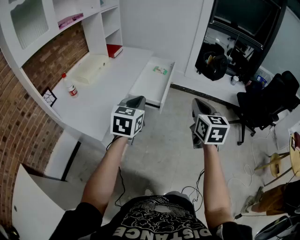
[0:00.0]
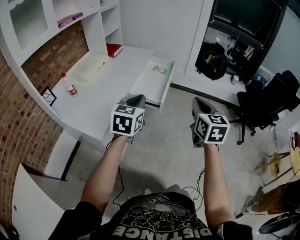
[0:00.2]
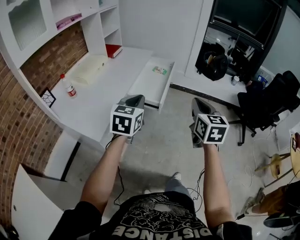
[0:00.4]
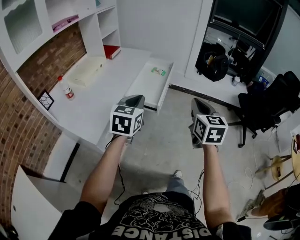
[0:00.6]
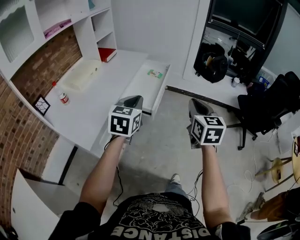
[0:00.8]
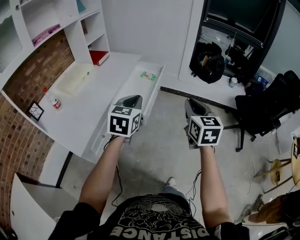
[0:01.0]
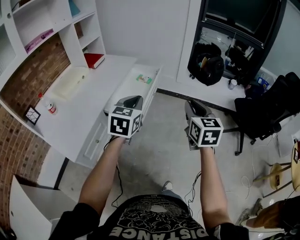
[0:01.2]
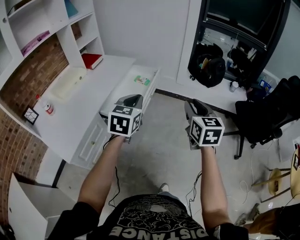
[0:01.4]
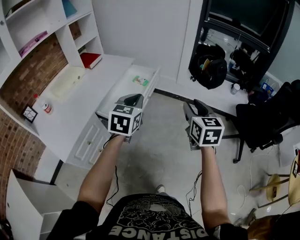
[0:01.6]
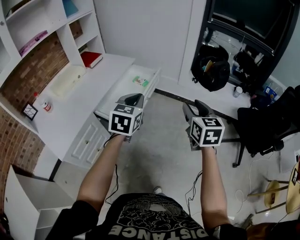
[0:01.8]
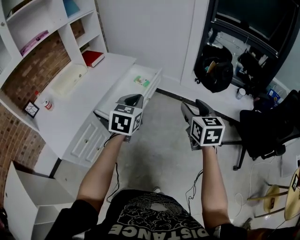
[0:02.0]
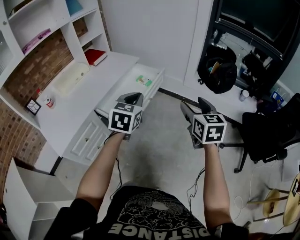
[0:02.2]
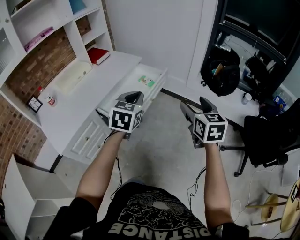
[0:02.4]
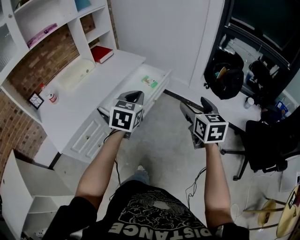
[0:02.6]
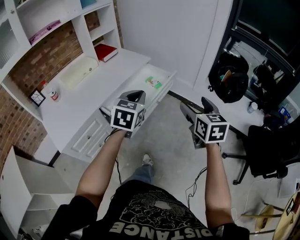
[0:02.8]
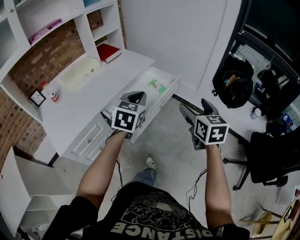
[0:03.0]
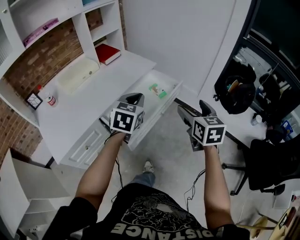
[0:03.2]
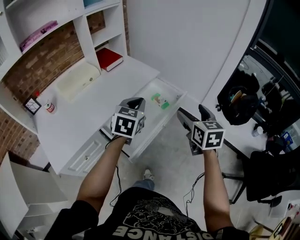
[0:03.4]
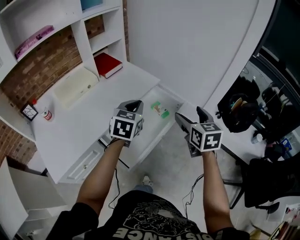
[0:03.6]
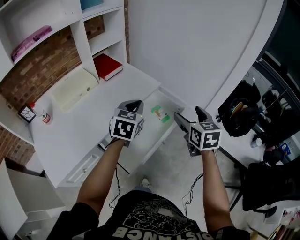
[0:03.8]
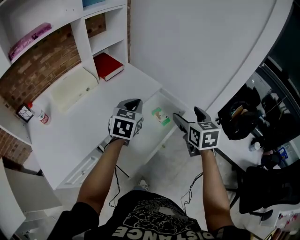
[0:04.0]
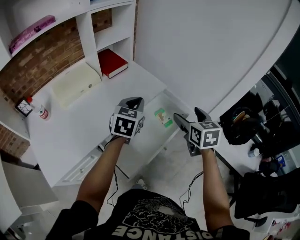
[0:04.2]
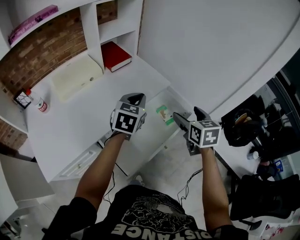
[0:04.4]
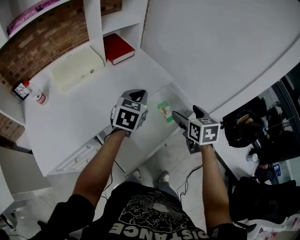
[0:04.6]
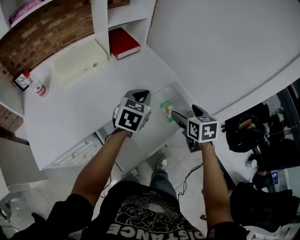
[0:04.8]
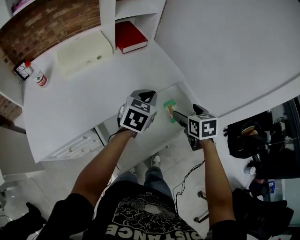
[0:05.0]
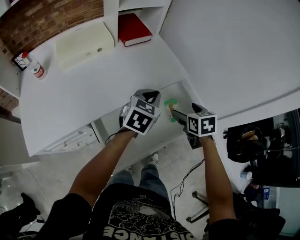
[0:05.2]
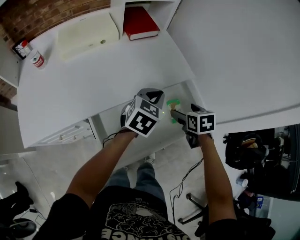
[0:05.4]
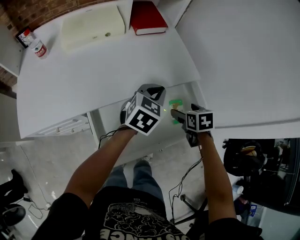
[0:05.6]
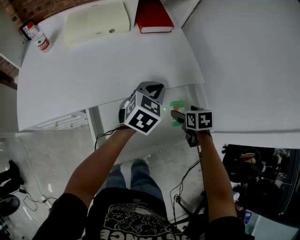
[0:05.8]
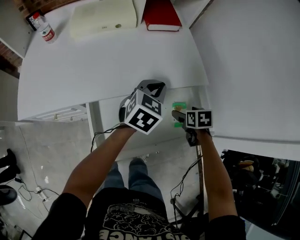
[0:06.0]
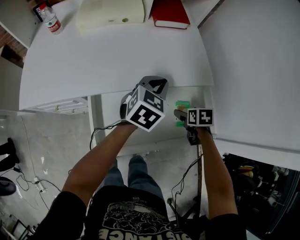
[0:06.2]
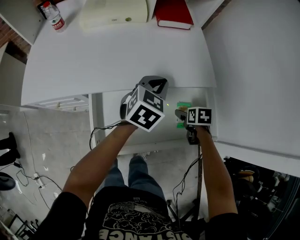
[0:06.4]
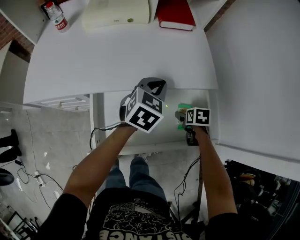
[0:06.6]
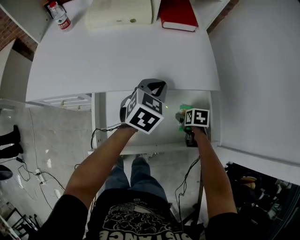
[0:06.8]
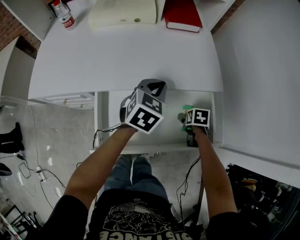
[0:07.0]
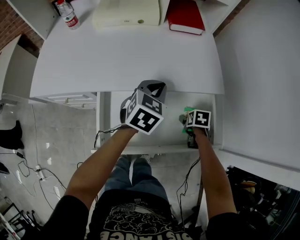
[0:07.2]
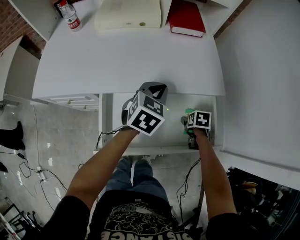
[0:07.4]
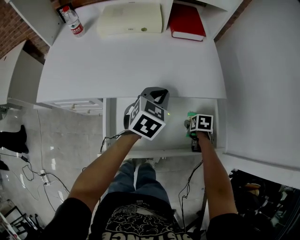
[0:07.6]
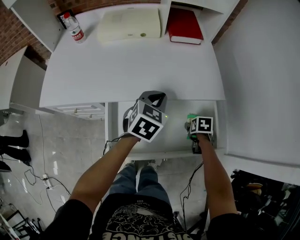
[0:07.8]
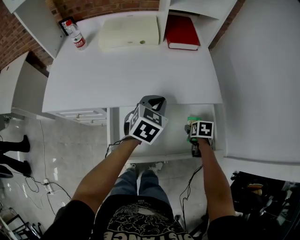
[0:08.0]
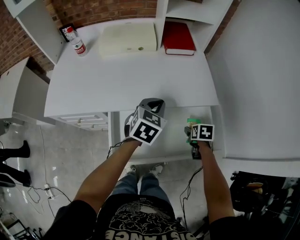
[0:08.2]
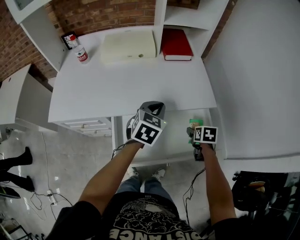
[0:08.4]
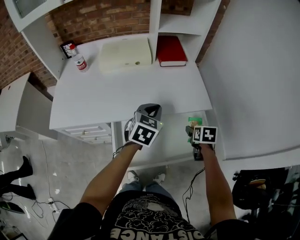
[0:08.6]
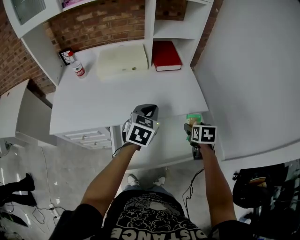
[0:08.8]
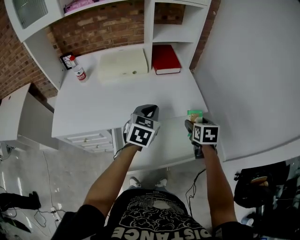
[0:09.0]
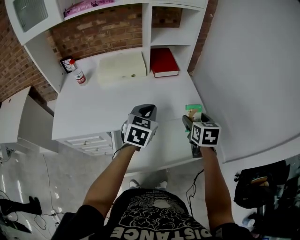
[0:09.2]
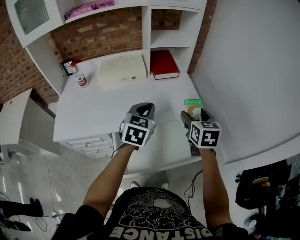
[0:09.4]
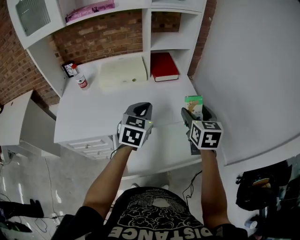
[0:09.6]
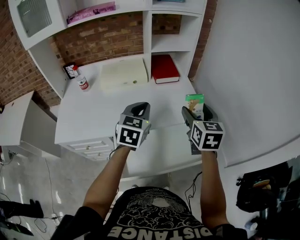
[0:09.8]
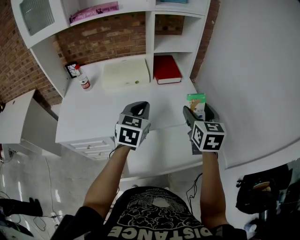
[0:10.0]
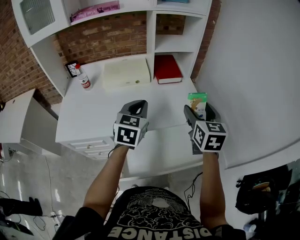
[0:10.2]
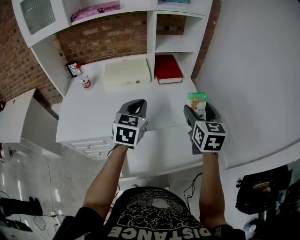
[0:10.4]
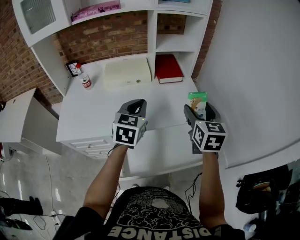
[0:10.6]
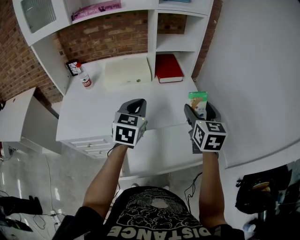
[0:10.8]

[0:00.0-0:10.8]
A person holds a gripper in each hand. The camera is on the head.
0:00.0 to 0:01.6: Both grippers travel together forward and to the right, roughly 30 cm.
0:01.6 to 0:03.0: Both grippers travel together forward, about 15 cm. The right gripper opens.
0:03.0 to 0:04.6: Both grippers move forward, some 30 cm. The right gripper turns by about 20 degrees.
0:04.6 to 0:06.2: The left gripper moves downward, about 10 cm, and swivels approximately 20 degrees. Meanwhile the right gripper shifts some 25 cm downward, and angles its fingers downward, by approximately 30 degrees.
0:06.2 to 0:07.8: The left gripper moves roughly 5 cm.
0:07.8 to 0:09.2: The left gripper moves upward, about 15 cm. The right gripper heads upward, covering roughly 30 cm, and tilts its fingers approximately 40 degrees upward.
0:09.2 to 0:10.8: The left gripper travels to the left and upward by roughly 10 cm; the right gripper moves upward, roughly 10 cm.

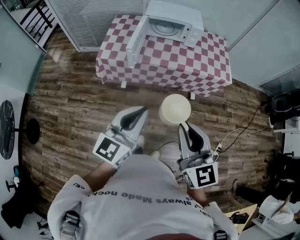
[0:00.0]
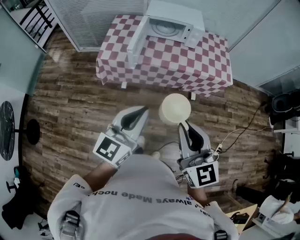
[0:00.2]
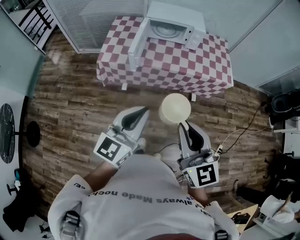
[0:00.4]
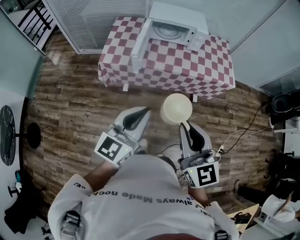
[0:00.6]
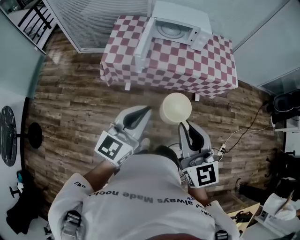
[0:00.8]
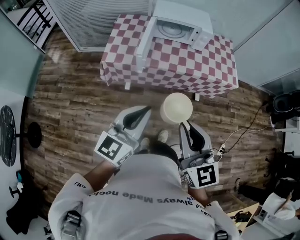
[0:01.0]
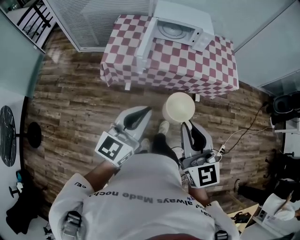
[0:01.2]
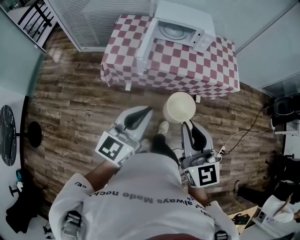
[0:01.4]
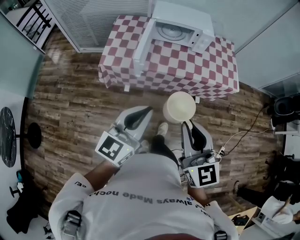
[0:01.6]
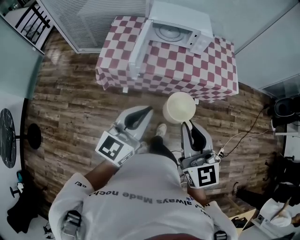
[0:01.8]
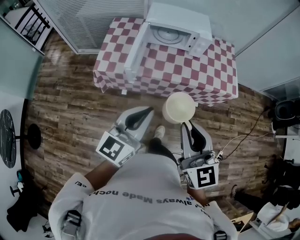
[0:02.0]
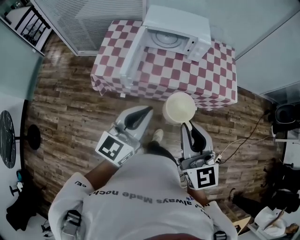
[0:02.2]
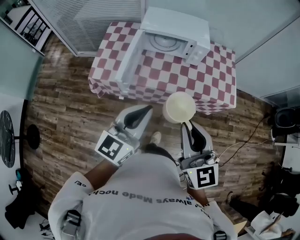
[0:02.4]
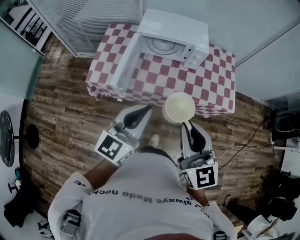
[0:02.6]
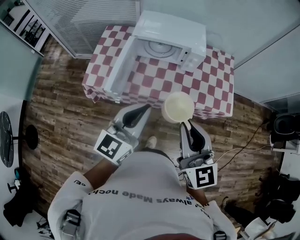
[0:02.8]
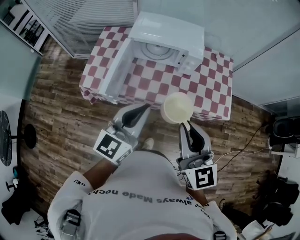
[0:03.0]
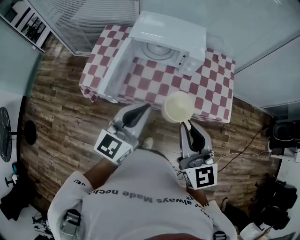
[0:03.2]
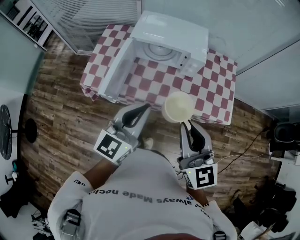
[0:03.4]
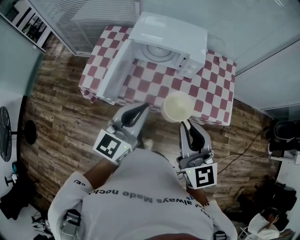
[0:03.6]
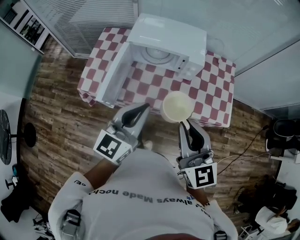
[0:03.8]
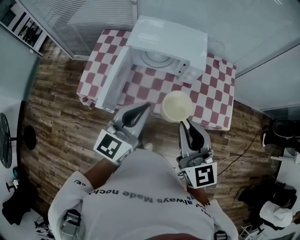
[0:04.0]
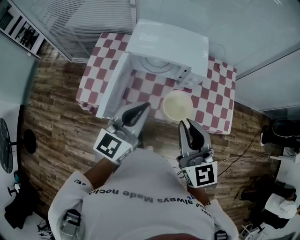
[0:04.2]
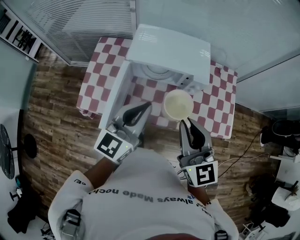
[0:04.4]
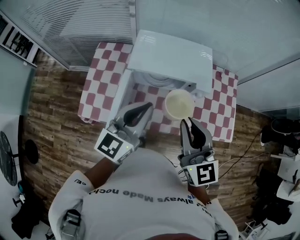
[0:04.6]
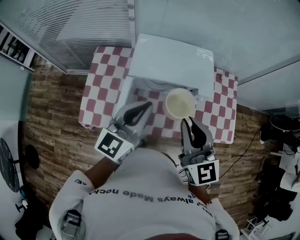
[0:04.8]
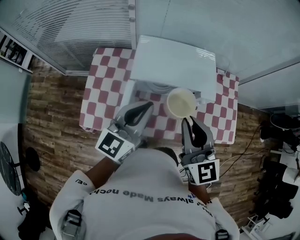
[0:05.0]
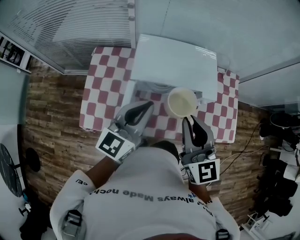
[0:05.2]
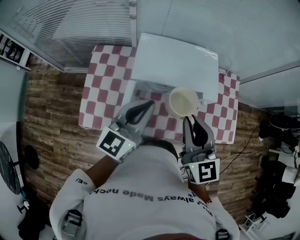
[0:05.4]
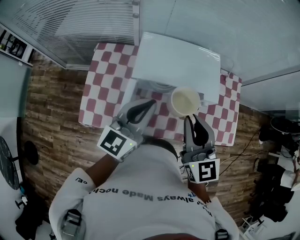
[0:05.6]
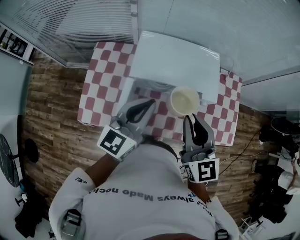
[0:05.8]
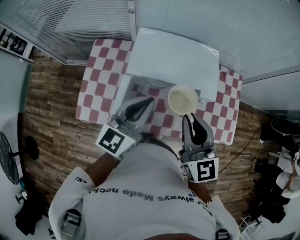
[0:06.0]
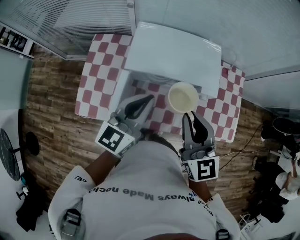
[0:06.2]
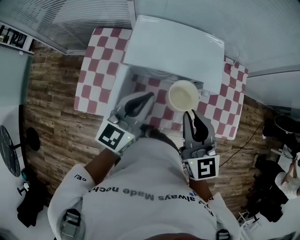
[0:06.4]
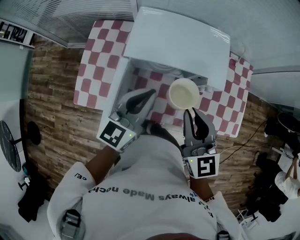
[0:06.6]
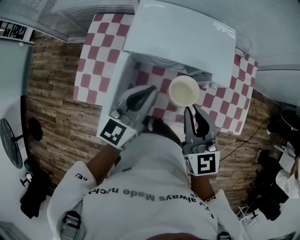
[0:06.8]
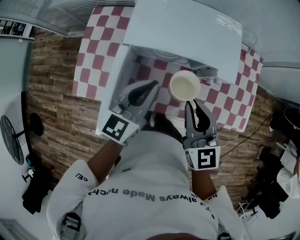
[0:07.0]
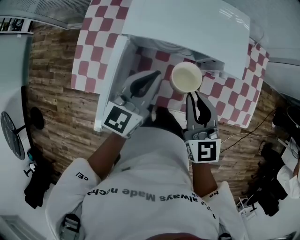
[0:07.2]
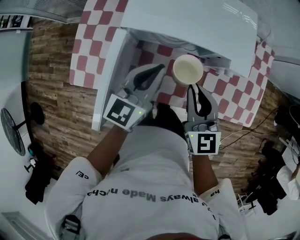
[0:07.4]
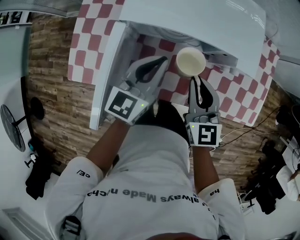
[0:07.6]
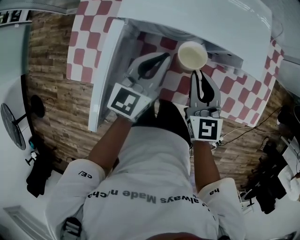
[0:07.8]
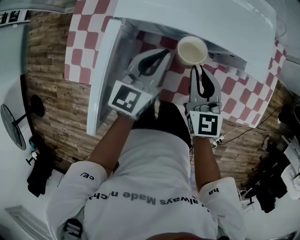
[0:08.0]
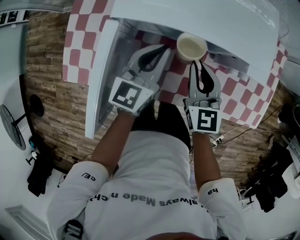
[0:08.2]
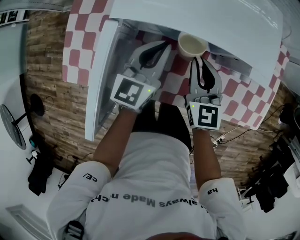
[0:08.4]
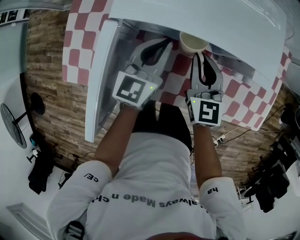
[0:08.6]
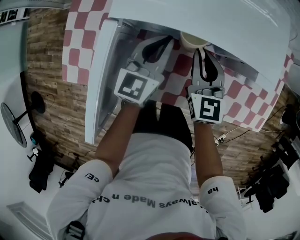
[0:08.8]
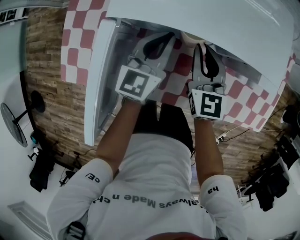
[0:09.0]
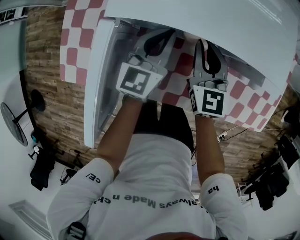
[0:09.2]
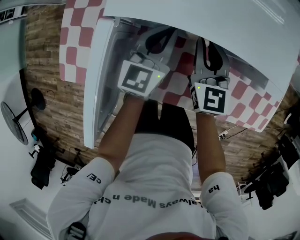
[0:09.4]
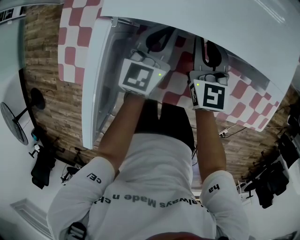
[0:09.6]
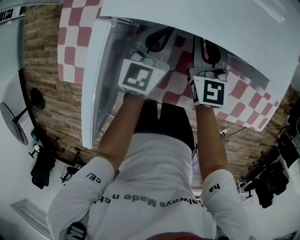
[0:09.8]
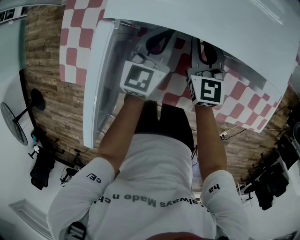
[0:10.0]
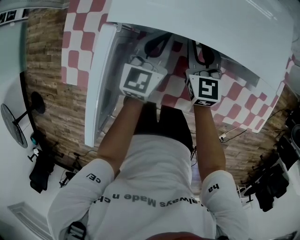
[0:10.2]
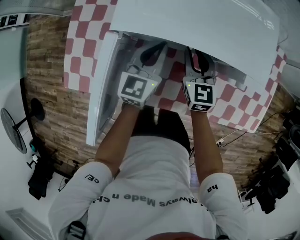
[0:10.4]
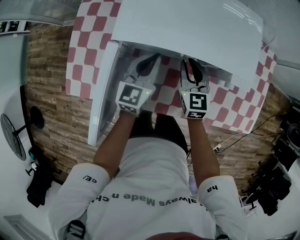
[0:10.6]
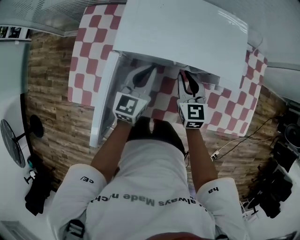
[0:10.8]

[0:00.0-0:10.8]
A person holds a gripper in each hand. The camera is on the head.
0:00.0 to 0:01.6: The grippers both shift forward and to the left by approximately 10 cm.
0:01.6 to 0:03.0: Both grippers travel together forward and to the right, some 25 cm.
0:03.0 to 0:04.6: Both grippers move forward, some 20 cm.
0:04.6 to 0:06.2: Both grippers move forward, about 10 cm.
0:06.2 to 0:07.8: The two grippers go about 20 cm downward.
0:07.8 to 0:09.2: The right gripper heads forward and downward, covering about 10 cm. The left gripper is displaced downward and forward by approximately 10 cm.
0:09.2 to 0:10.8: The right gripper changes place by about 5 cm, while the left gripper moves upward, roughly 5 cm.

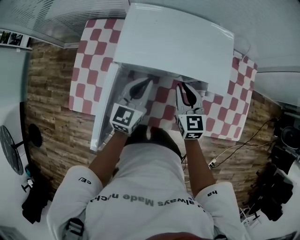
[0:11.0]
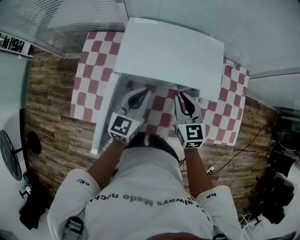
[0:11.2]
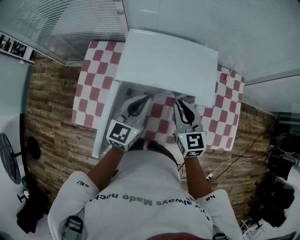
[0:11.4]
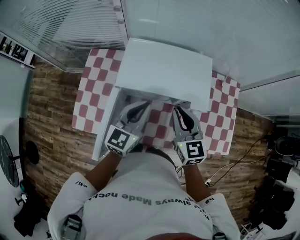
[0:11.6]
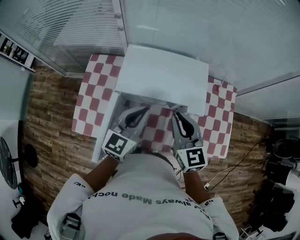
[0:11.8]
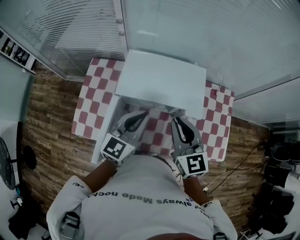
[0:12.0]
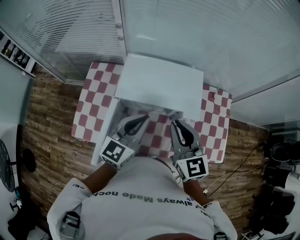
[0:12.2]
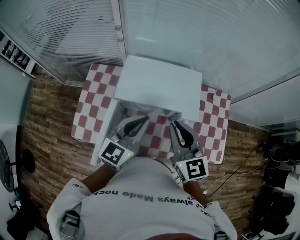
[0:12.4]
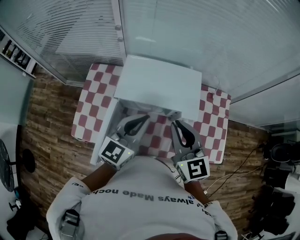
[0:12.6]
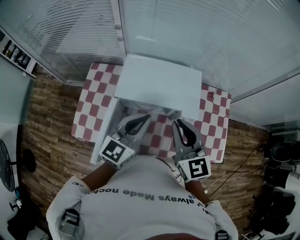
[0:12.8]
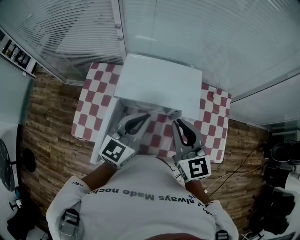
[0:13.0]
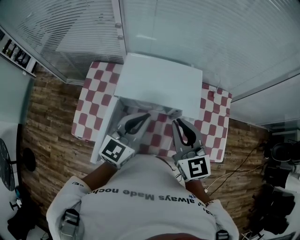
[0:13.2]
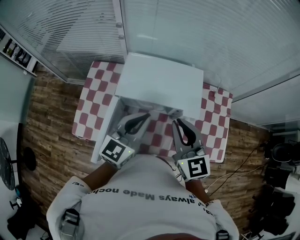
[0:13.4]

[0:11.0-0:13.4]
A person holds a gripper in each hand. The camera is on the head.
0:11.0 to 0:12.2: The grippers both shift upward by some 20 cm.
0:12.2 to 0:13.4: The grippers stay close to where they were, moving slightly.
